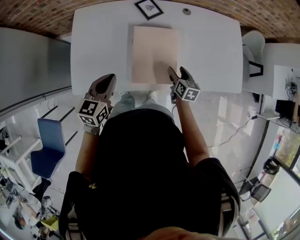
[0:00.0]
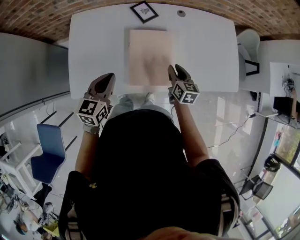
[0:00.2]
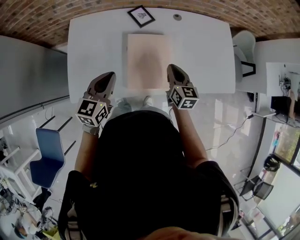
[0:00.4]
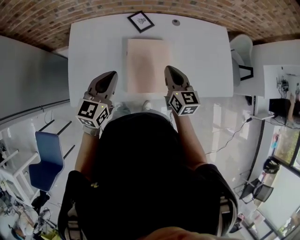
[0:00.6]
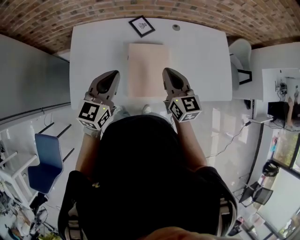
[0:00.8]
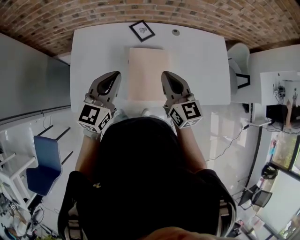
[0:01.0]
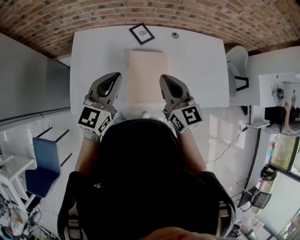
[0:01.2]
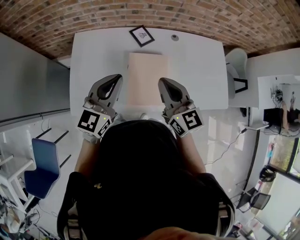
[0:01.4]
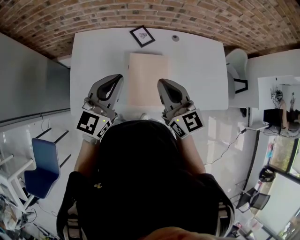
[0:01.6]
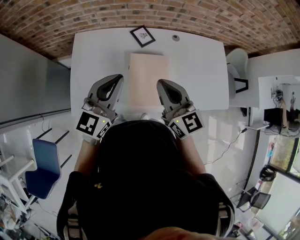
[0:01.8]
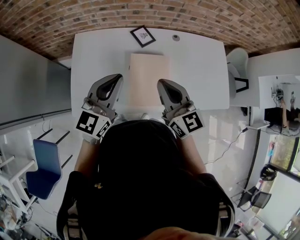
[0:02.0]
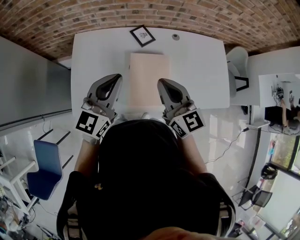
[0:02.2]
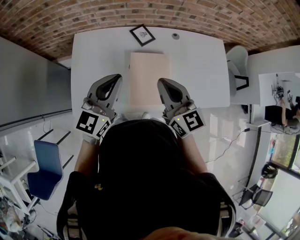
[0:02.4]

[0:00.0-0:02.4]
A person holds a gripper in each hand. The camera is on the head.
0:00.0 to 0:01.2: The left gripper heads upward, covering about 15 cm, and swivels approximately 20 degrees. The right gripper shifts some 30 cm upward, turns by approximately 40 degrees, and closes its fingers.
0:01.2 to 0:02.4: There are only small adjustments of the grippers.

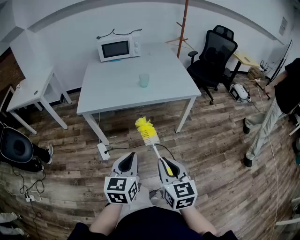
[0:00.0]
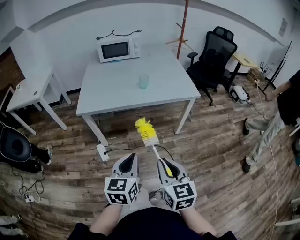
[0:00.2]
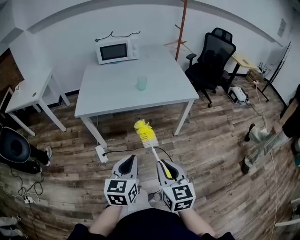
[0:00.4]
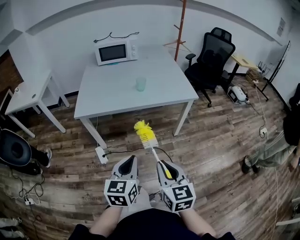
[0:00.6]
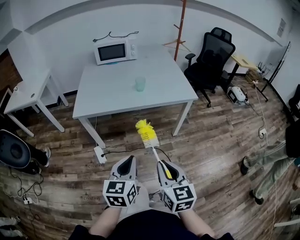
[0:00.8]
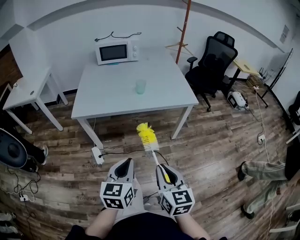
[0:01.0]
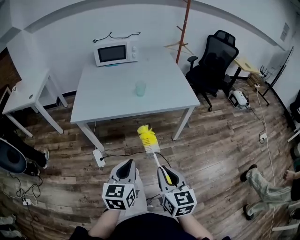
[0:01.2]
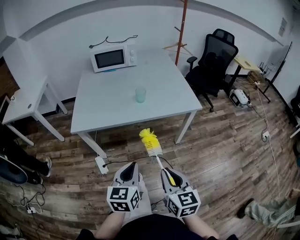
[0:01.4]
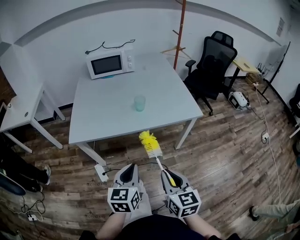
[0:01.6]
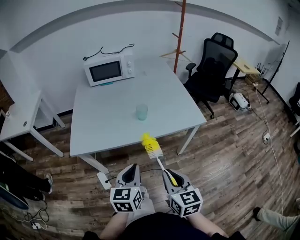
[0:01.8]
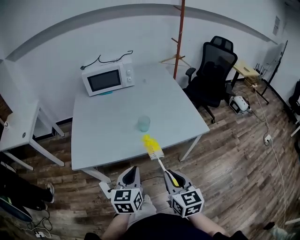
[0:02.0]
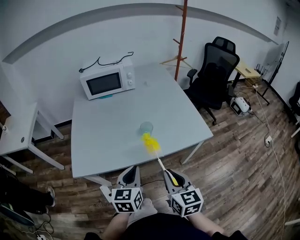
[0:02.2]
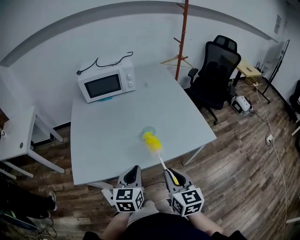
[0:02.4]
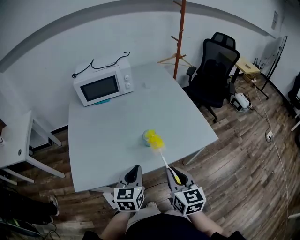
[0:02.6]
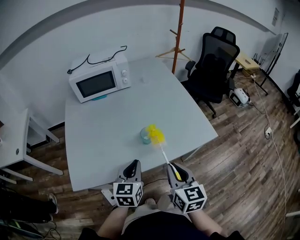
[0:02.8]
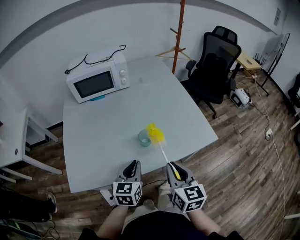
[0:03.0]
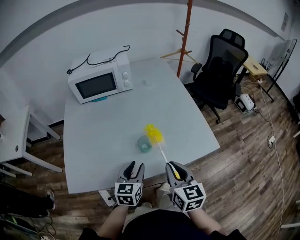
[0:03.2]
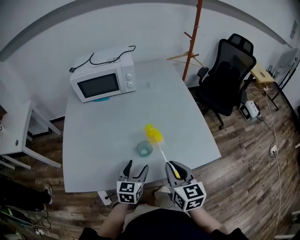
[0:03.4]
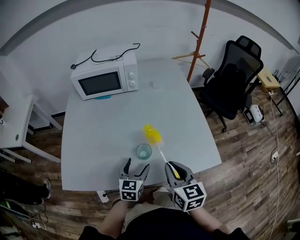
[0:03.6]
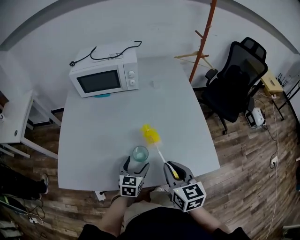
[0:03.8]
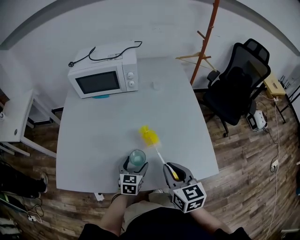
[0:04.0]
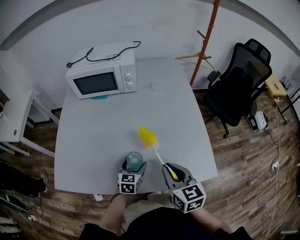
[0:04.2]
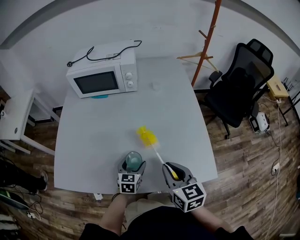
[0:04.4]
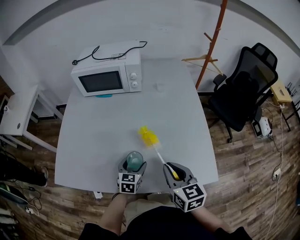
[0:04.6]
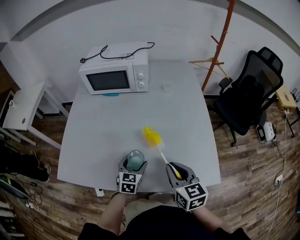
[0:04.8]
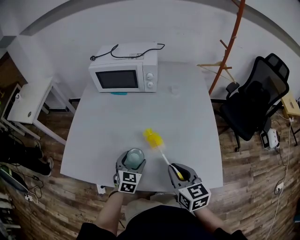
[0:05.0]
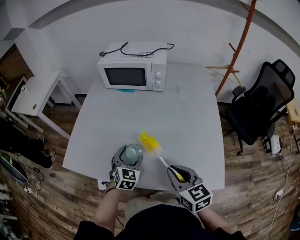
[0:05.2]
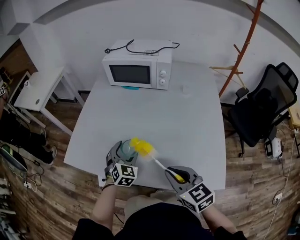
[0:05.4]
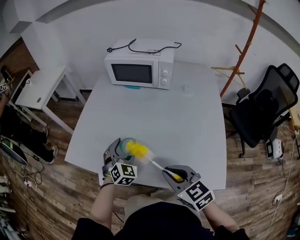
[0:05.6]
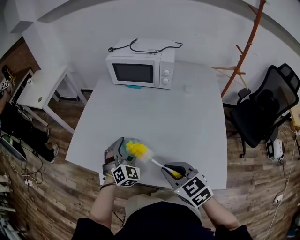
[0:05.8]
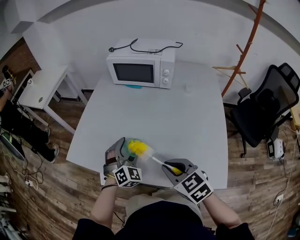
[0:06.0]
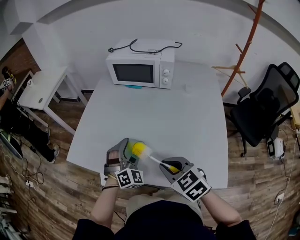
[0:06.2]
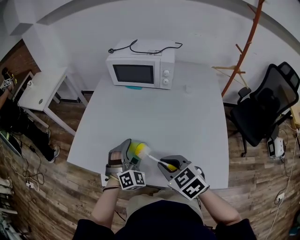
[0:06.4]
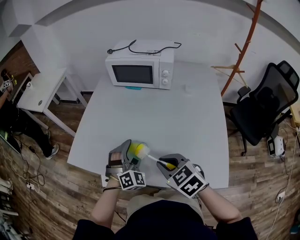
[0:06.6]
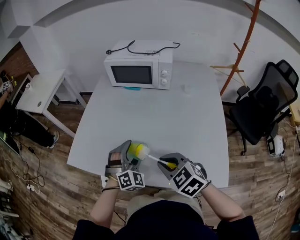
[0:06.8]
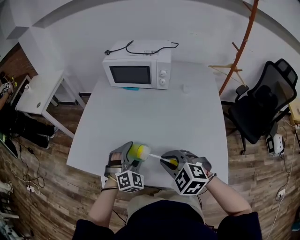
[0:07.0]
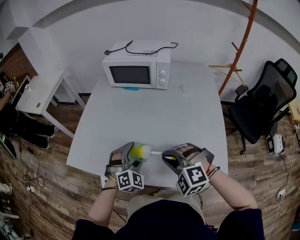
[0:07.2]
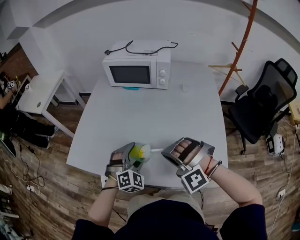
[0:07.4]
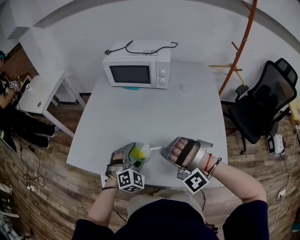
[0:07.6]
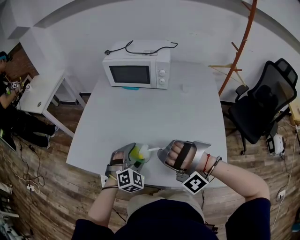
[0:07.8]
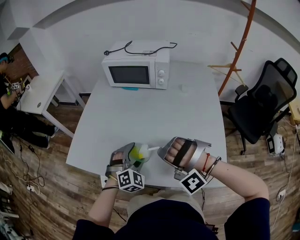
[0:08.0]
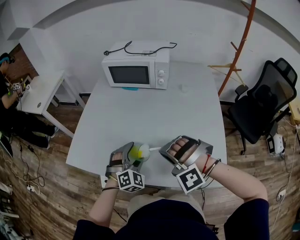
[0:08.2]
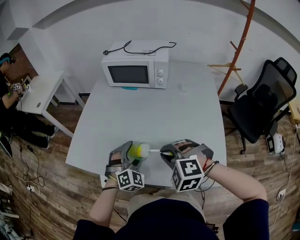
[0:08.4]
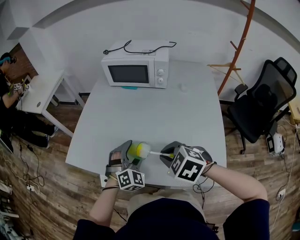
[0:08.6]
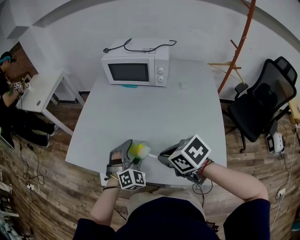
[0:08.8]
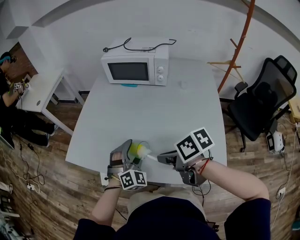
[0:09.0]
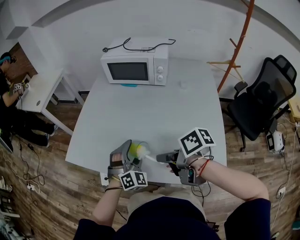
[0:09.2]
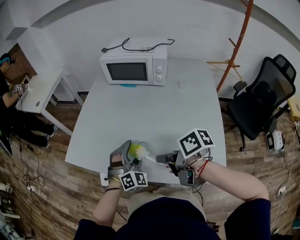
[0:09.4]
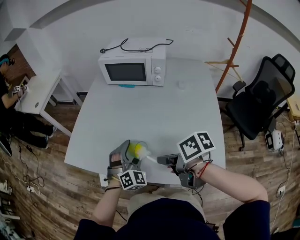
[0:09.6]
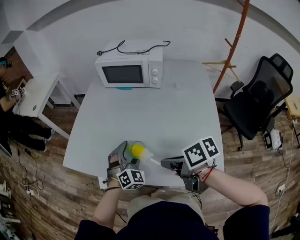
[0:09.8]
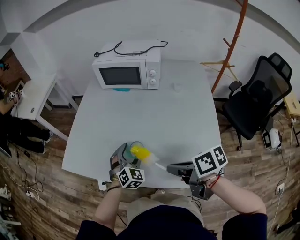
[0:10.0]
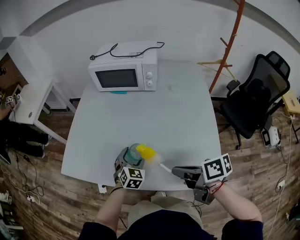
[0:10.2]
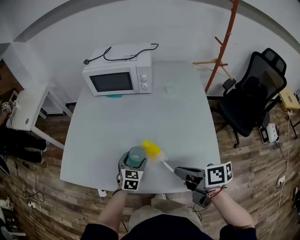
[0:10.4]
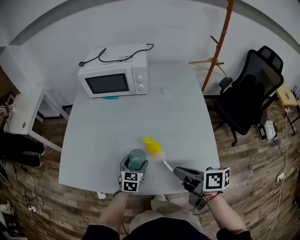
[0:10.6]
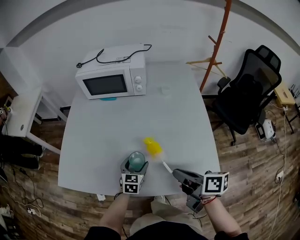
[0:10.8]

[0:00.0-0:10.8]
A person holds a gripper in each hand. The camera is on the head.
0:00.0 to 0:01.6: Both grippers move forward, some 15 cm.
0:01.6 to 0:03.0: The grippers both shift forward by about 30 cm.
0:03.0 to 0:04.6: The left gripper shifts about 20 cm forward, downward and to the right, and opens its fingers. Meanwhile the right gripper moves forward and to the right, approximately 15 cm, and rotates about 30 degrees.
0:04.6 to 0:06.2: The left gripper heads upward, covering roughly 10 cm, and rotates around the line of its fingers by some 50 degrees, clockwise from behind, while the right gripper changes place by roughly 10 cm, and changes its angle by about 40 degrees.
0:06.2 to 0:07.8: The left gripper ends up roughly 5 cm from where it was; the right gripper rolls counterclockwise, seen from behind, by roughly 120 degrees.
0:07.8 to 0:09.2: The right gripper changes its angle by approximately 180 degrees.
0:09.2 to 0:10.8: The left gripper heads downward, covering roughly 10 cm, and rotates around the line of its fingers by roughly 50 degrees, counterclockwise from behind; the right gripper ends up roughly 10 cm from where it was, and changes its angle by about 40 degrees.

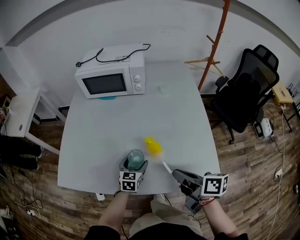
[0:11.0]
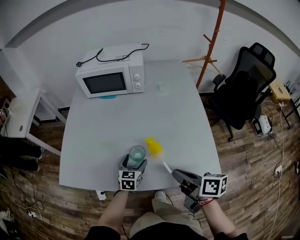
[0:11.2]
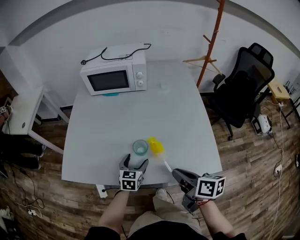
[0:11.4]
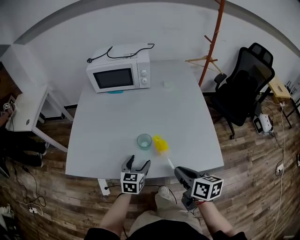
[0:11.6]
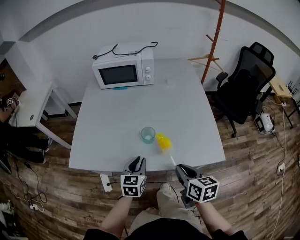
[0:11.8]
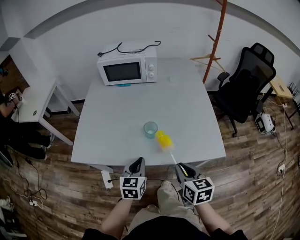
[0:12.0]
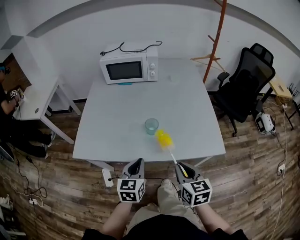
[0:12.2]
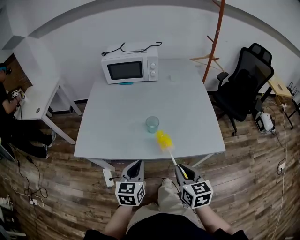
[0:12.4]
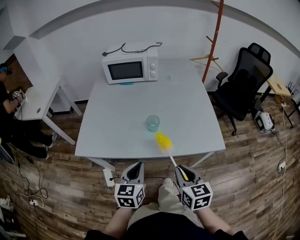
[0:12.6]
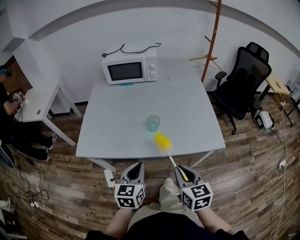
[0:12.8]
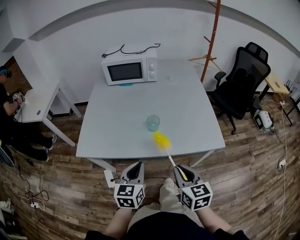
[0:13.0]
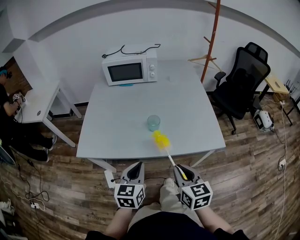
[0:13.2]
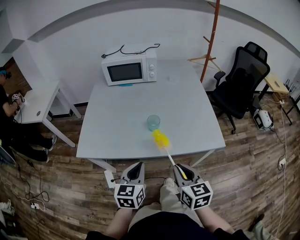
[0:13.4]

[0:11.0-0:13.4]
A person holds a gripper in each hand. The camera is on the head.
0:11.0 to 0:12.2: The left gripper moves backward, upward and to the left, some 25 cm, and closes. Meanwhile the right gripper heads backward and to the left, covering some 15 cm, and rolls counterclockwise, seen from behind, by roughly 40 degrees.
0:12.2 to 0:13.4: The right gripper shifts by about 5 cm; the left gripper shifts about 5 cm backward.

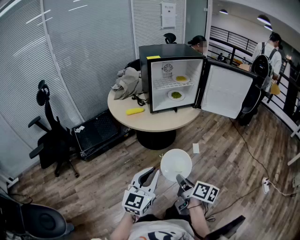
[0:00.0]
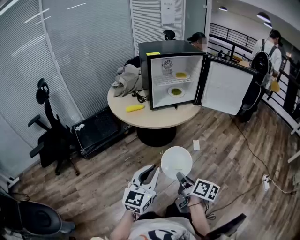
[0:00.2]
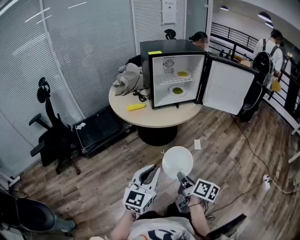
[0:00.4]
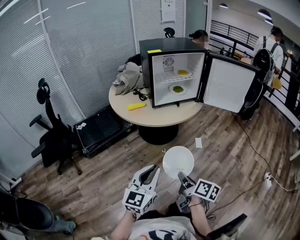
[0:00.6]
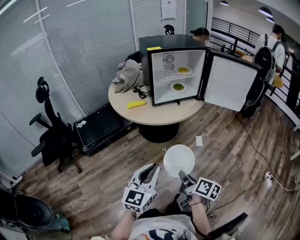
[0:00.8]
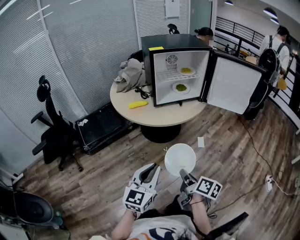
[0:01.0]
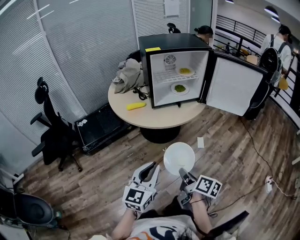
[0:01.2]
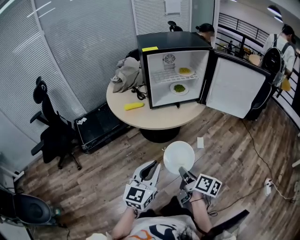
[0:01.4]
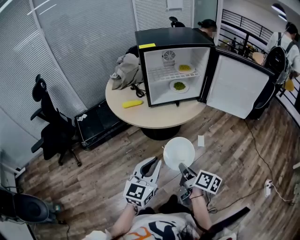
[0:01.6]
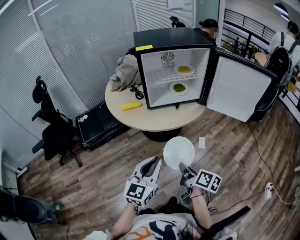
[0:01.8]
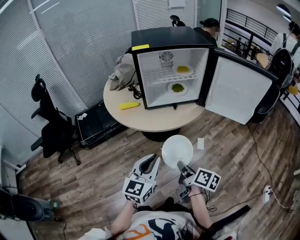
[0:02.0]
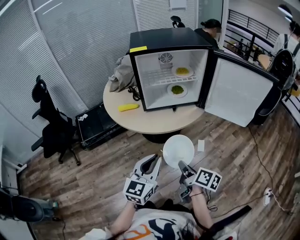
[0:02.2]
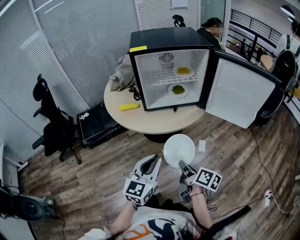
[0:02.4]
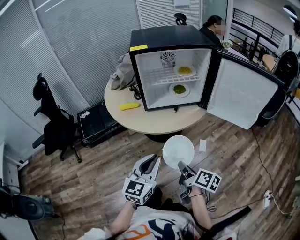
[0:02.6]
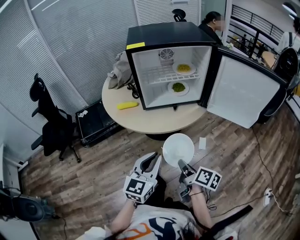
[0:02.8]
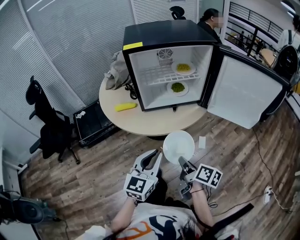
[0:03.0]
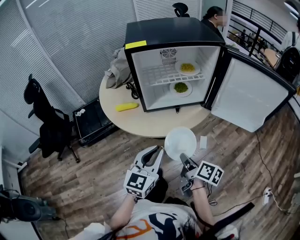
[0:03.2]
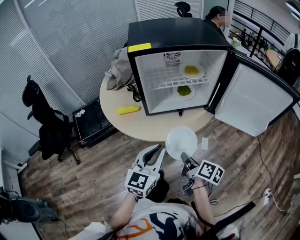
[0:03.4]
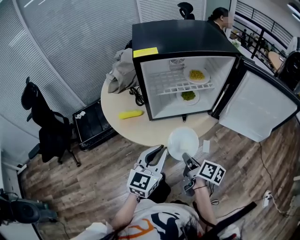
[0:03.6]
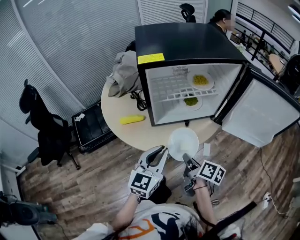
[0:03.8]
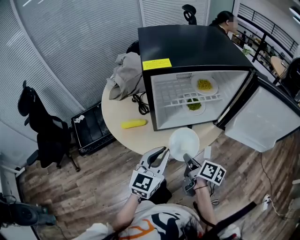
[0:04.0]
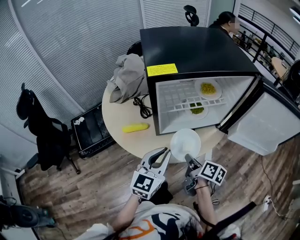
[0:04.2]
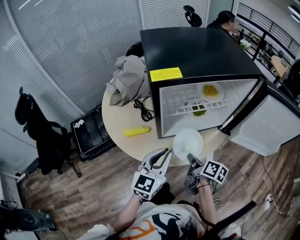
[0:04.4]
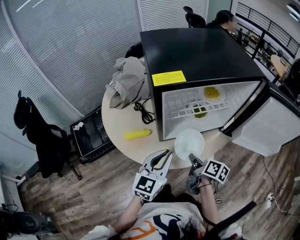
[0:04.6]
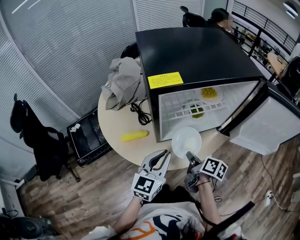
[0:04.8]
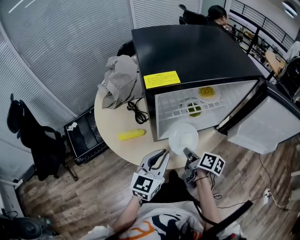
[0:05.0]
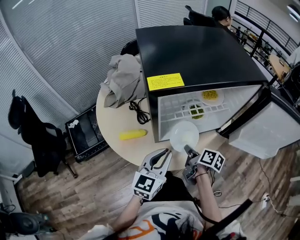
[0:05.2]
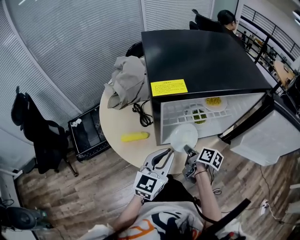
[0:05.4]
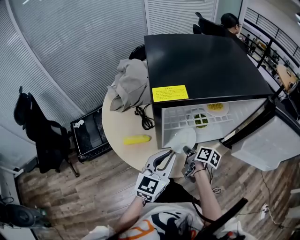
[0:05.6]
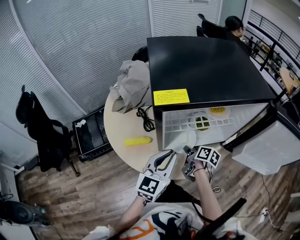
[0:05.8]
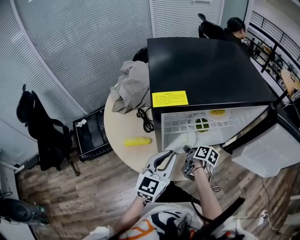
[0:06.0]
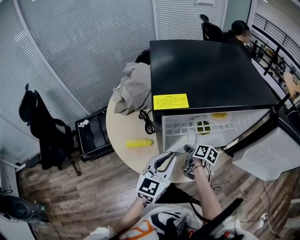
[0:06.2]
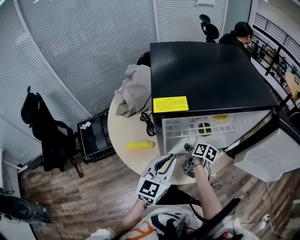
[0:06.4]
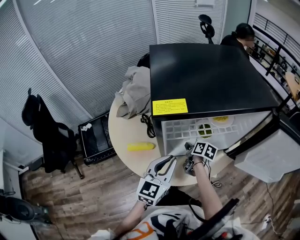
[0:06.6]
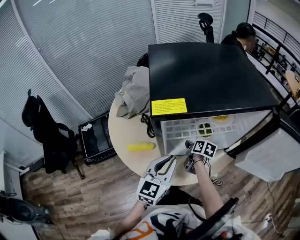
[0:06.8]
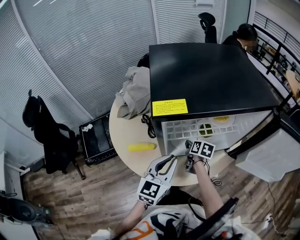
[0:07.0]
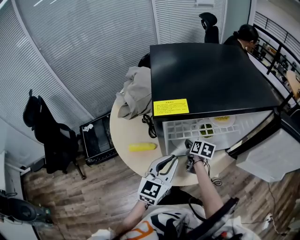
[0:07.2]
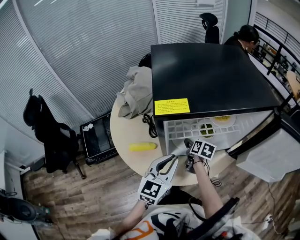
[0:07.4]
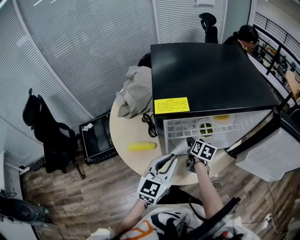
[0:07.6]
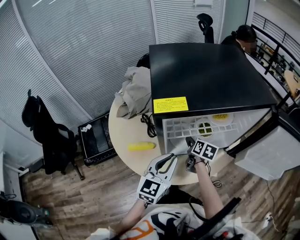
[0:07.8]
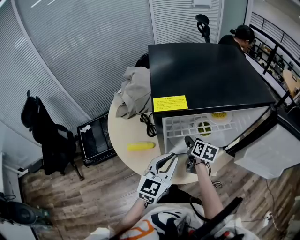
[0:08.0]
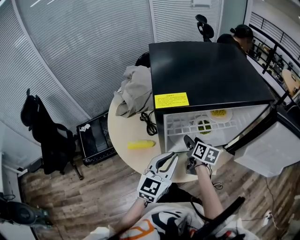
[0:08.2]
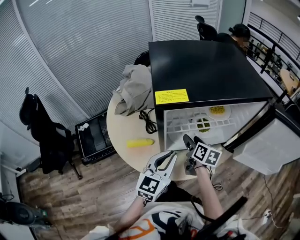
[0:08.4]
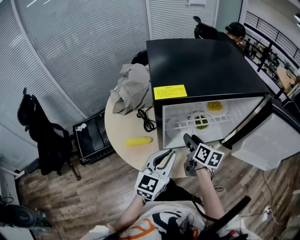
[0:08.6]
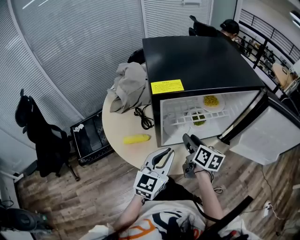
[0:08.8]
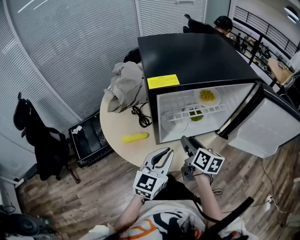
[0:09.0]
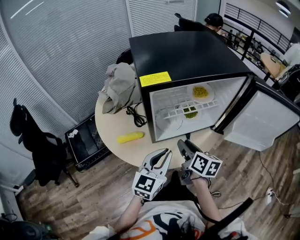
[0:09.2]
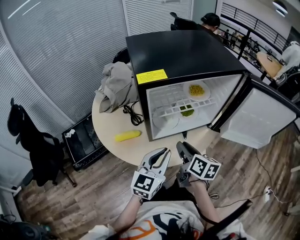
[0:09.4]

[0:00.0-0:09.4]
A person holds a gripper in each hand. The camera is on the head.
0:00.0 to 0:01.6: The two grippers go approximately 15 cm forward and to the right.
0:01.6 to 0:03.2: Both grippers travel together forward, about 15 cm.
0:03.2 to 0:04.8: The right gripper heads forward, covering about 20 cm; the left gripper is displaced forward and to the left by roughly 20 cm.
0:04.8 to 0:06.2: The left gripper is displaced forward by some 5 cm. The right gripper shifts roughly 15 cm forward and downward.
0:06.2 to 0:07.8: The right gripper is displaced forward by approximately 5 cm, changes its angle by approximately 20 degrees, and opens up.
0:07.8 to 0:09.4: The left gripper travels backward by roughly 5 cm, while the right gripper moves backward and upward, some 20 cm, and closes up.
